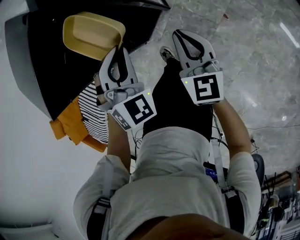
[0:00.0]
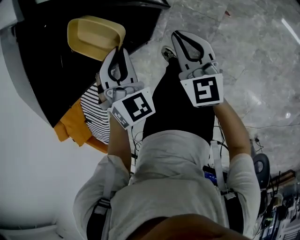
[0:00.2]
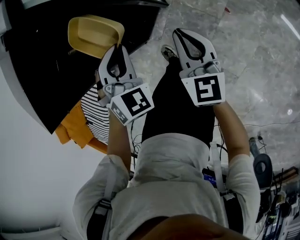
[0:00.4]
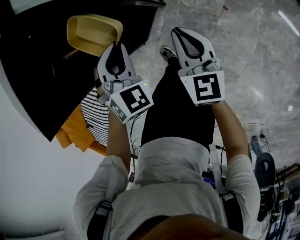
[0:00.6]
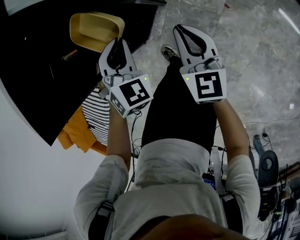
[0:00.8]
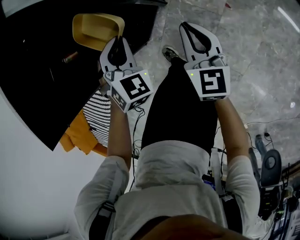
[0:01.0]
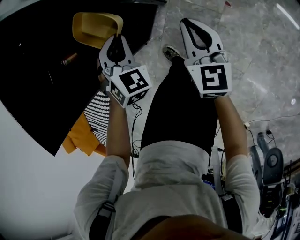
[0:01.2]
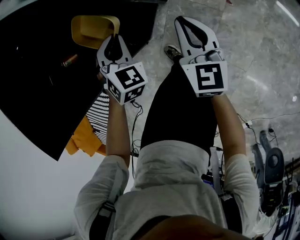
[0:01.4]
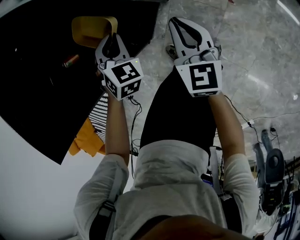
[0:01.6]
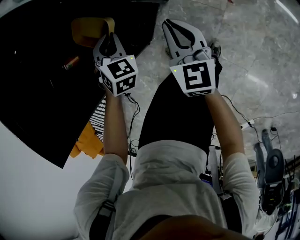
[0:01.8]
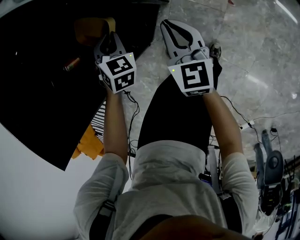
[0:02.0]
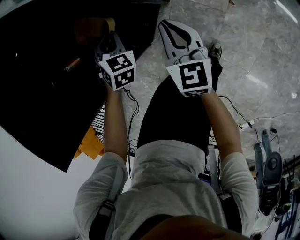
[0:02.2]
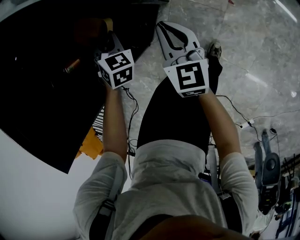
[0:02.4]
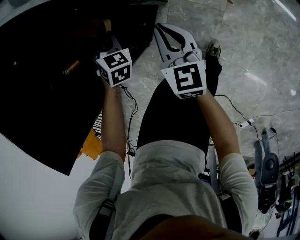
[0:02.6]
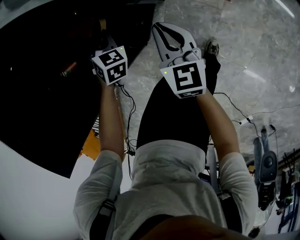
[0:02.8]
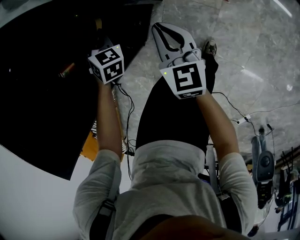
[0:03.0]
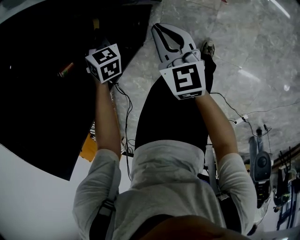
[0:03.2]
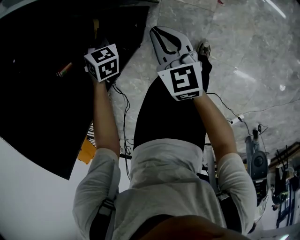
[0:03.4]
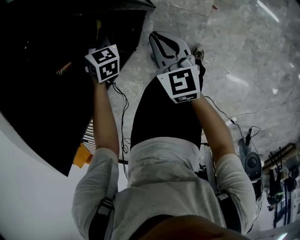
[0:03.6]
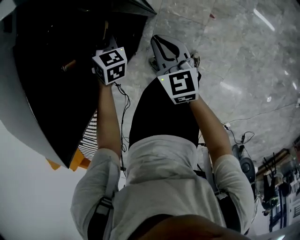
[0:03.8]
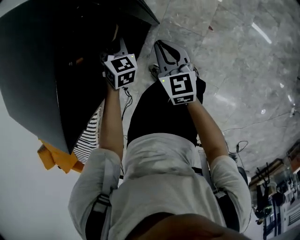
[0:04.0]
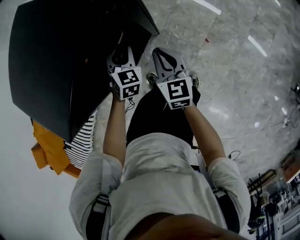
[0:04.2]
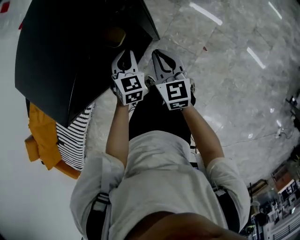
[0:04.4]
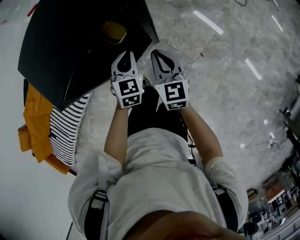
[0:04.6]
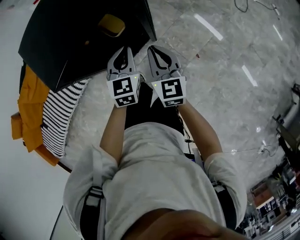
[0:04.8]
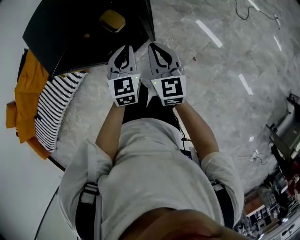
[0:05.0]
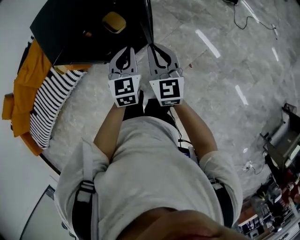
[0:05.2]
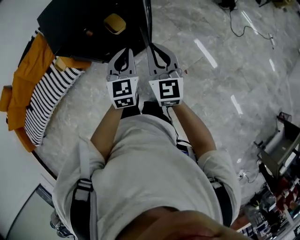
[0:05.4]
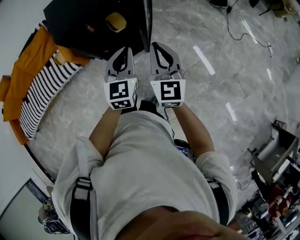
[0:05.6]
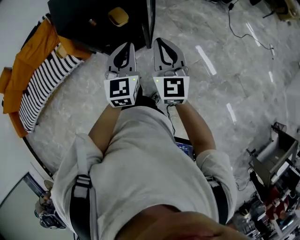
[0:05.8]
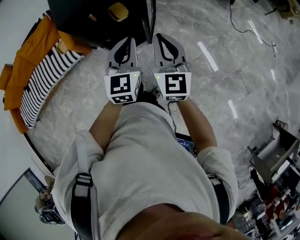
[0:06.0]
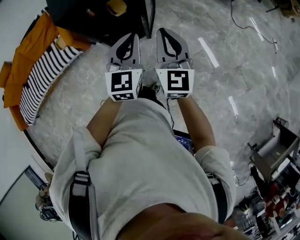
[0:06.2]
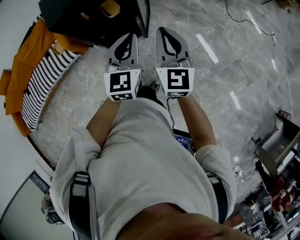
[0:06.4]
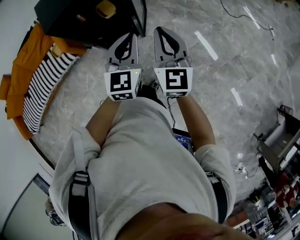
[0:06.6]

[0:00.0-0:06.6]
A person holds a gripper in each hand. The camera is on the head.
0:00.0 to 0:01.6: The left gripper heads downward, covering approximately 20 cm; the right gripper shifts about 10 cm downward.
0:01.6 to 0:03.2: The right gripper travels to the left by roughly 5 cm. The left gripper heads forward, to the left and downward, covering approximately 15 cm.
0:03.2 to 0:05.0: The left gripper is displaced upward and backward by roughly 35 cm, and swivels some 50 degrees. Meanwhile the right gripper moves upward, some 25 cm, and swivels roughly 30 degrees.
0:05.0 to 0:06.6: Both grippers move backward, to the right and upward, about 20 cm.

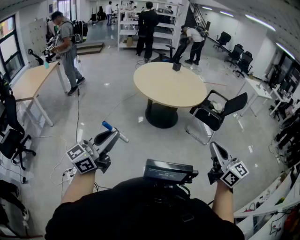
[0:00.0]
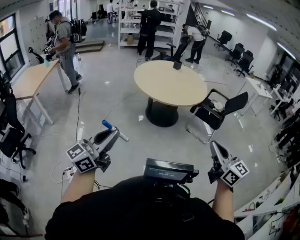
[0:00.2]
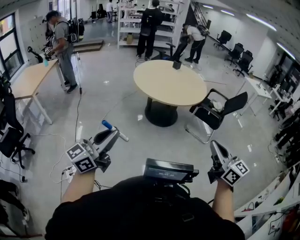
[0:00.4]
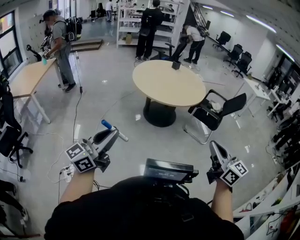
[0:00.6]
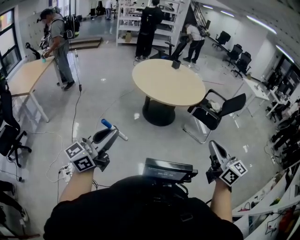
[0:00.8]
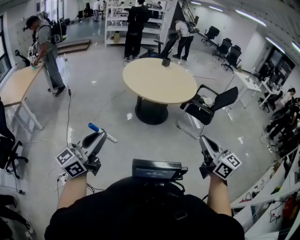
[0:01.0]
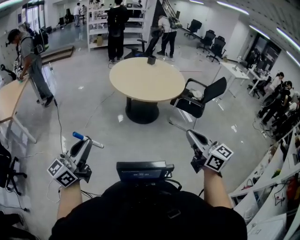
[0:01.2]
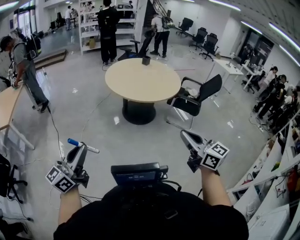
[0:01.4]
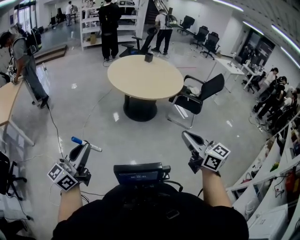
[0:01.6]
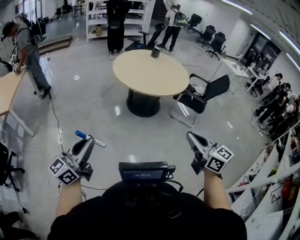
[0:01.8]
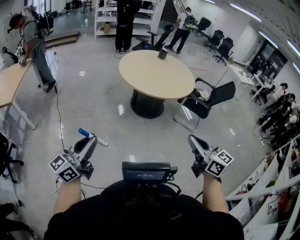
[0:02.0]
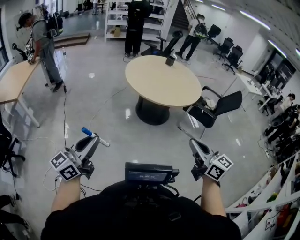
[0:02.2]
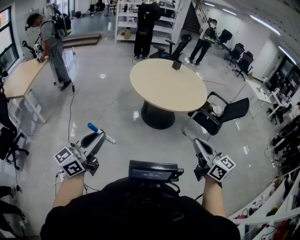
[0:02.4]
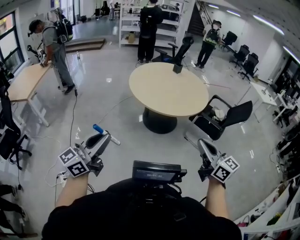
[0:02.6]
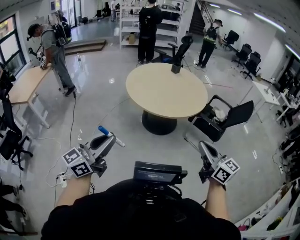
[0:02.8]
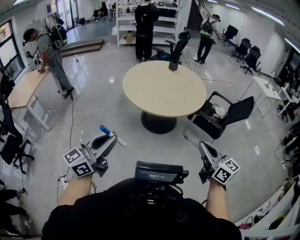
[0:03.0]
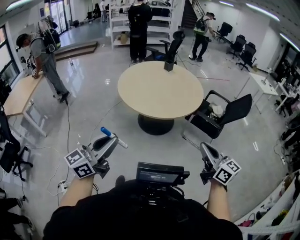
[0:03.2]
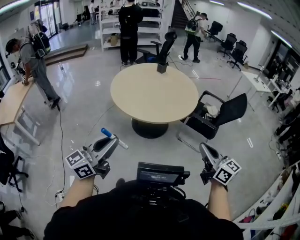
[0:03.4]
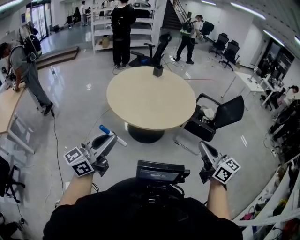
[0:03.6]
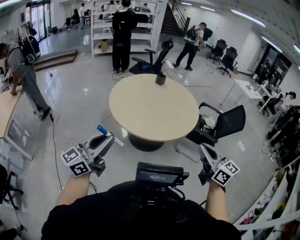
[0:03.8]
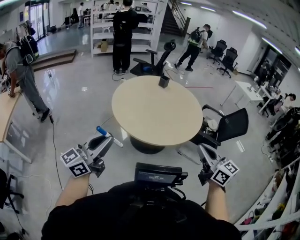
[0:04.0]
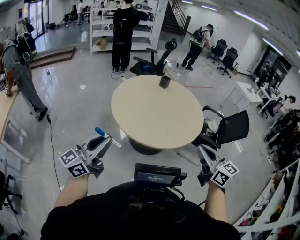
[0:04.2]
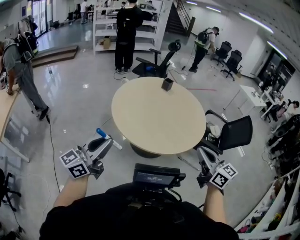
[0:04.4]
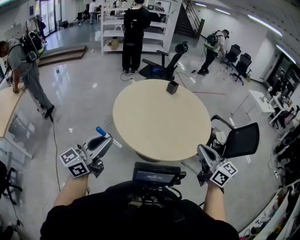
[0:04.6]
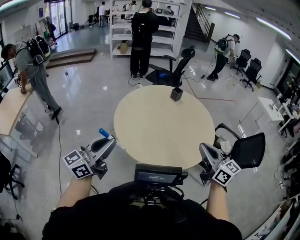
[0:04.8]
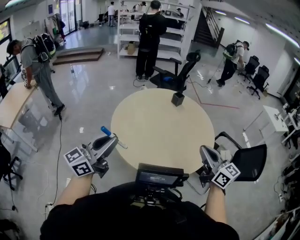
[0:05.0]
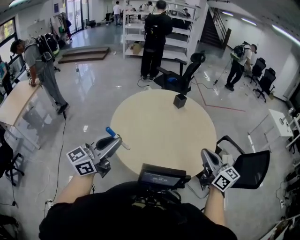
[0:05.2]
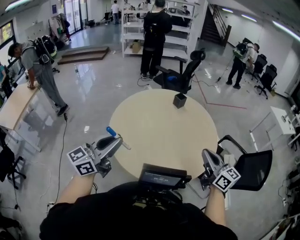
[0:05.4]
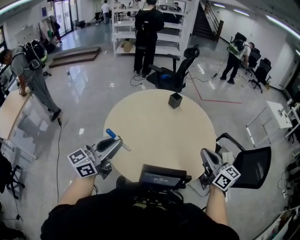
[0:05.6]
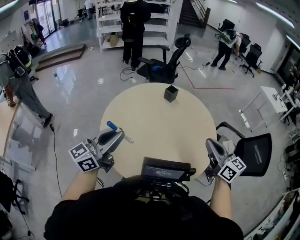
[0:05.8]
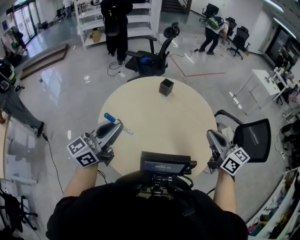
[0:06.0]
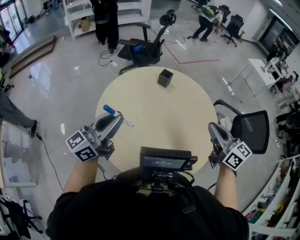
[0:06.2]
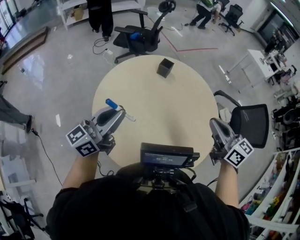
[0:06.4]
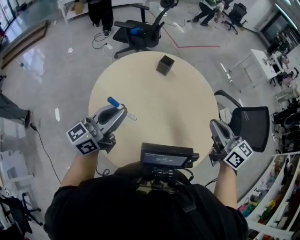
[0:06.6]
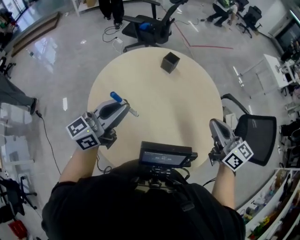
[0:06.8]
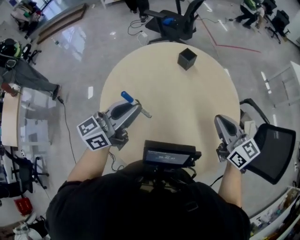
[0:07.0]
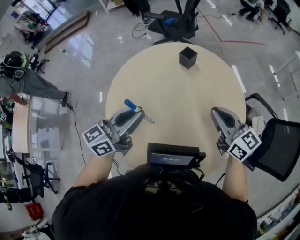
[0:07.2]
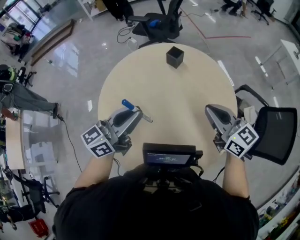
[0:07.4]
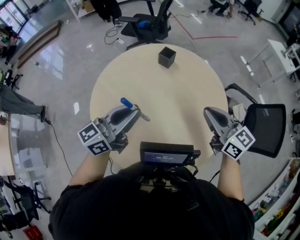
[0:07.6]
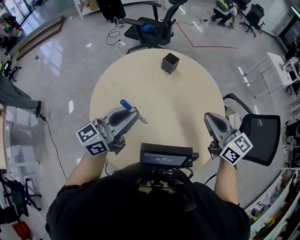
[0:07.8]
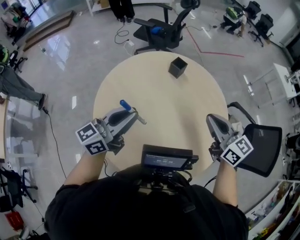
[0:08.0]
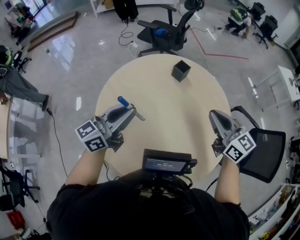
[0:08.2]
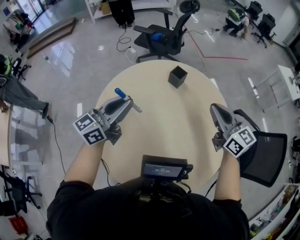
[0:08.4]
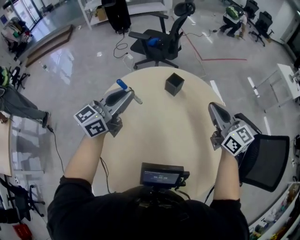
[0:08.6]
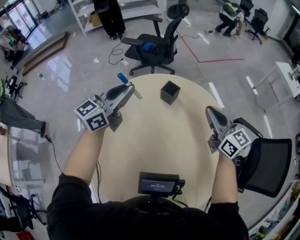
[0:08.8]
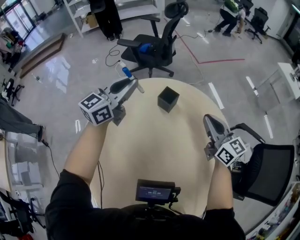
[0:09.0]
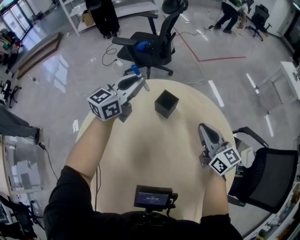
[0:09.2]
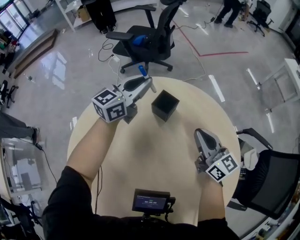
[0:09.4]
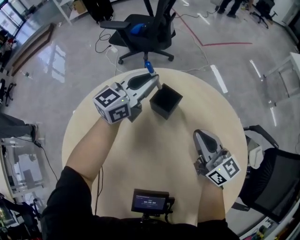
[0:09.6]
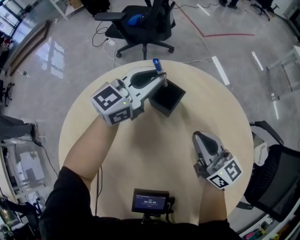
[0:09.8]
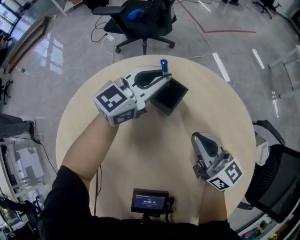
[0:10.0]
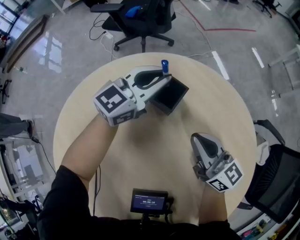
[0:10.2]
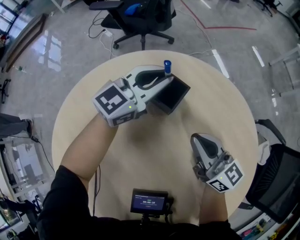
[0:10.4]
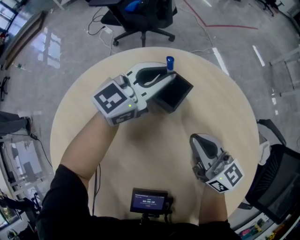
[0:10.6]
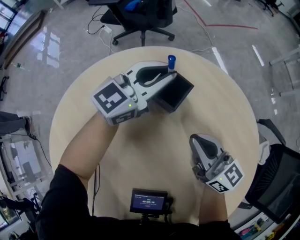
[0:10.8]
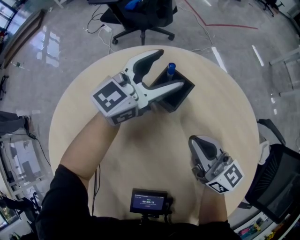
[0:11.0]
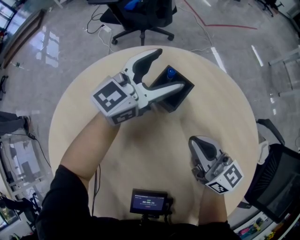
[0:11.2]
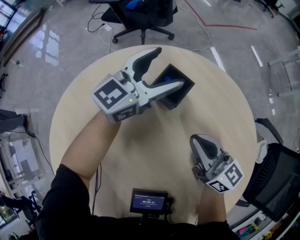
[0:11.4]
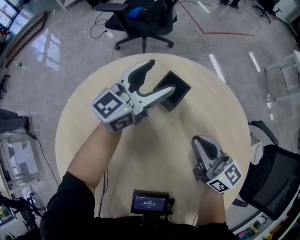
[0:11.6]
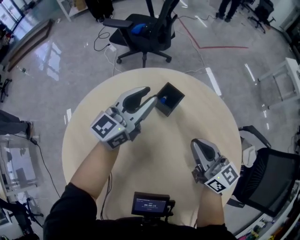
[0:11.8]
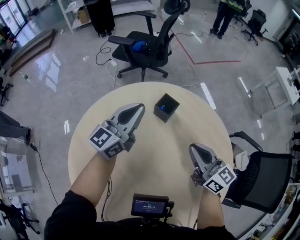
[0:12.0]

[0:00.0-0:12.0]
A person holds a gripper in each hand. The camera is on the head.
0:00.0 to 0:01.6: The grippers both shift to the left by some 15 cm.
0:01.6 to 0:03.0: The grippers both shift to the right and forward by roughly 30 cm.
0:03.0 to 0:04.4: Both grippers travel together forward and to the left, some 35 cm.
0:04.4 to 0:06.0: Both grippers travel together forward, approximately 35 cm.
0:06.0 to 0:07.6: The left gripper moves forward, to the right and downward, about 20 cm. The right gripper goes approximately 15 cm forward and downward.
0:07.6 to 0:09.0: Both grippers move forward, approximately 30 cm.
0:09.0 to 0:10.4: The right gripper shifts roughly 20 cm downward. Meanwhile the left gripper is displaced downward, forward and to the right by roughly 30 cm.
0:10.4 to 0:12.0: The right gripper moves upward and backward, approximately 15 cm; the left gripper shifts about 20 cm upward, backward and to the left, swivels some 20 degrees, and opens, then closes again.

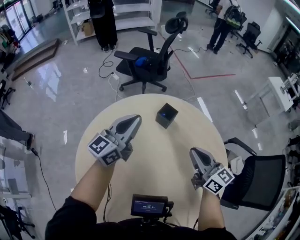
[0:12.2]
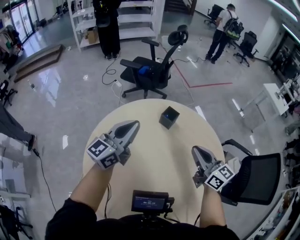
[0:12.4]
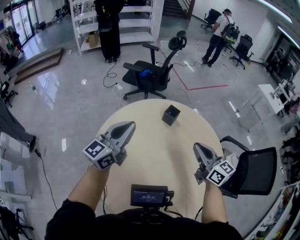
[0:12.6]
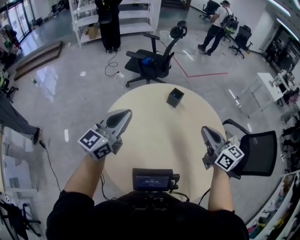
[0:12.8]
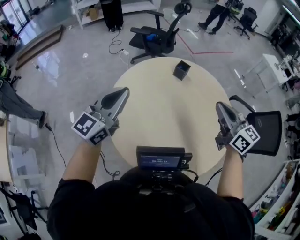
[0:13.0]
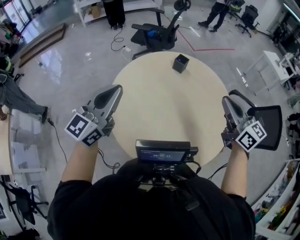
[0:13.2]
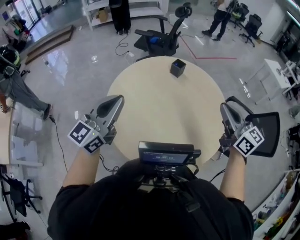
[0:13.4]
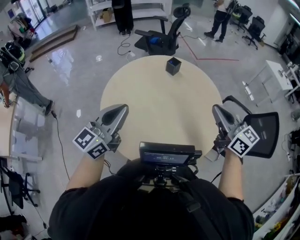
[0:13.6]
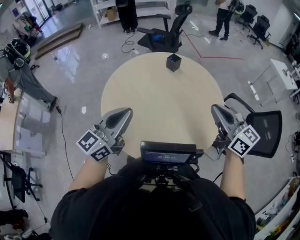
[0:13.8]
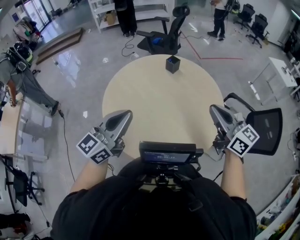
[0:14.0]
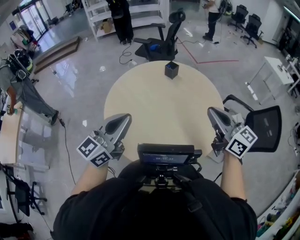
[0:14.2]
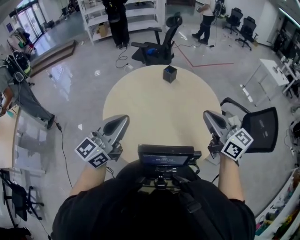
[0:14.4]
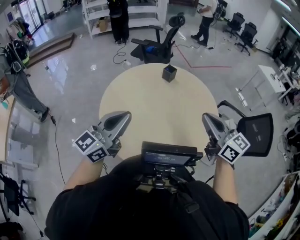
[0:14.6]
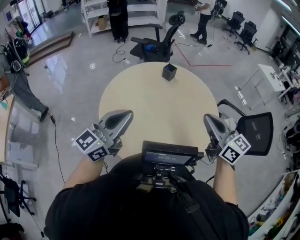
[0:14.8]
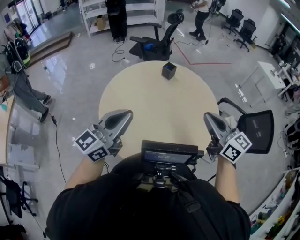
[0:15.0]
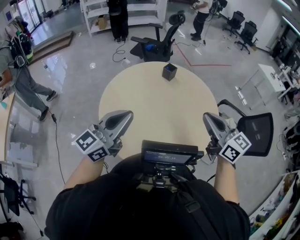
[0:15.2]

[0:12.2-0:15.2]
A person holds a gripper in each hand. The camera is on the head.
0:12.2 to 0:13.8: The left gripper is displaced backward by roughly 50 cm, while the right gripper heads backward and upward, covering about 40 cm.
0:13.8 to 0:15.2: The right gripper heads to the left, covering approximately 5 cm.

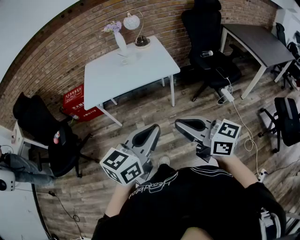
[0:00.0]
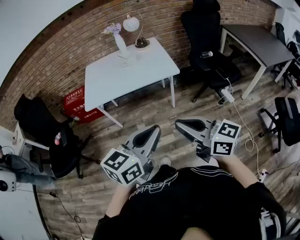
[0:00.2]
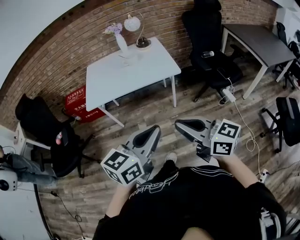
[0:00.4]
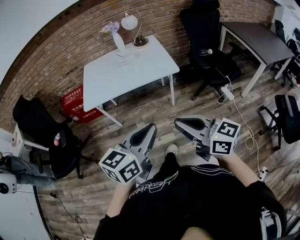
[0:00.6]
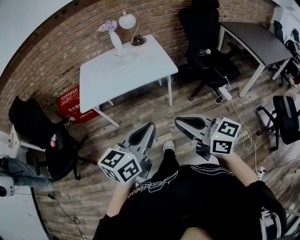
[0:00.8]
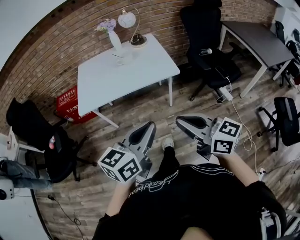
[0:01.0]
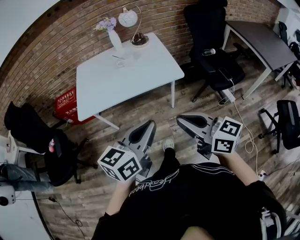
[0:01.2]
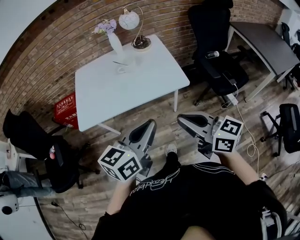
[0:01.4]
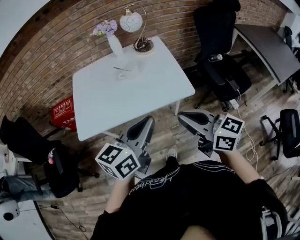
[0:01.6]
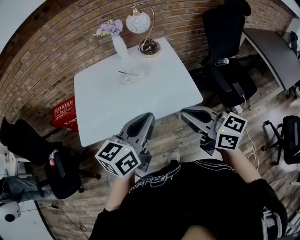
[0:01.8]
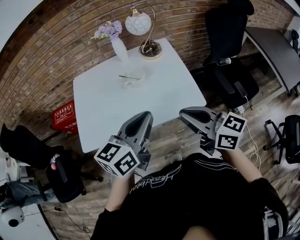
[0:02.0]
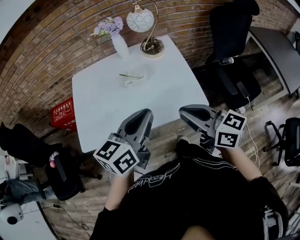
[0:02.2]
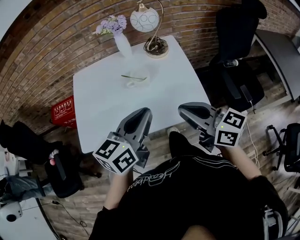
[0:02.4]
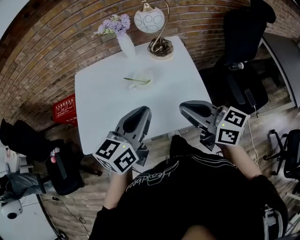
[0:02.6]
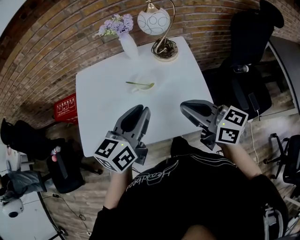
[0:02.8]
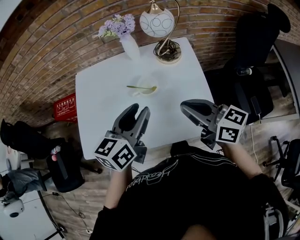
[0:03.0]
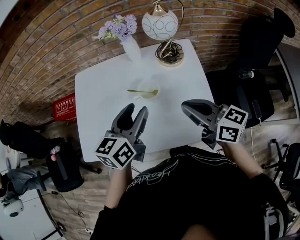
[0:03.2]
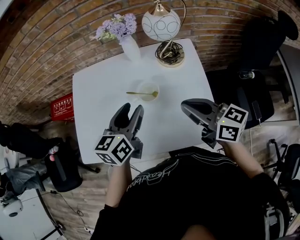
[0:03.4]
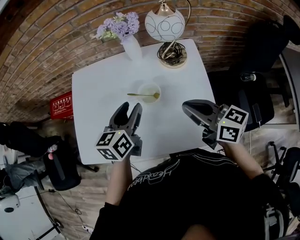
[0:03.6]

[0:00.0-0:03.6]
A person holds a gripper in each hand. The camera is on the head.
0:00.0 to 0:01.8: The two grippers go roughly 40 cm forward.
0:01.8 to 0:03.6: The two grippers go approximately 30 cm forward. The left gripper turns by some 30 degrees, and opens its fingers.
